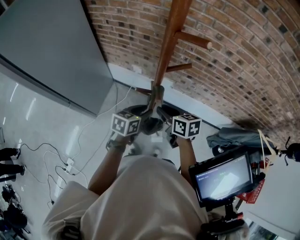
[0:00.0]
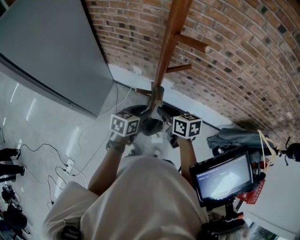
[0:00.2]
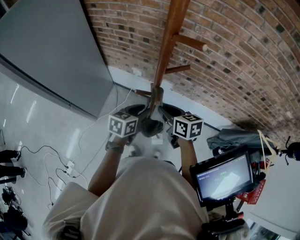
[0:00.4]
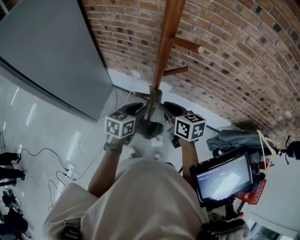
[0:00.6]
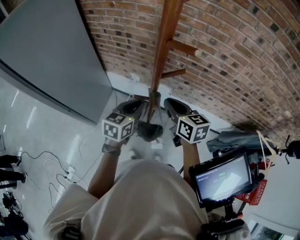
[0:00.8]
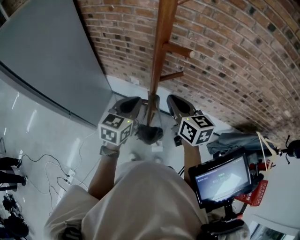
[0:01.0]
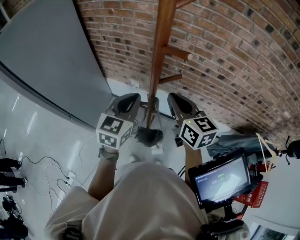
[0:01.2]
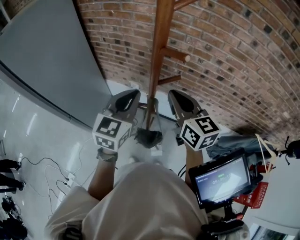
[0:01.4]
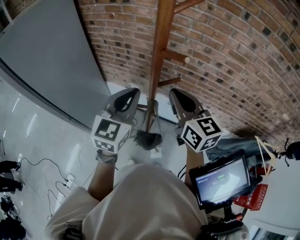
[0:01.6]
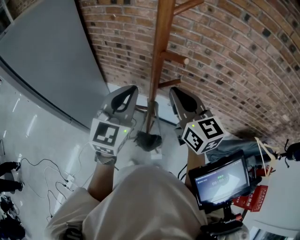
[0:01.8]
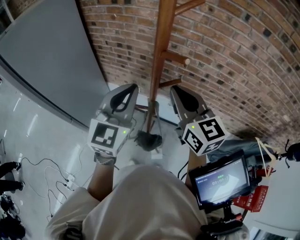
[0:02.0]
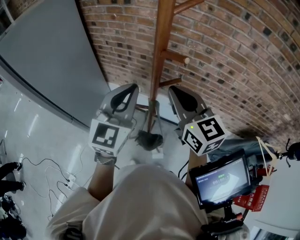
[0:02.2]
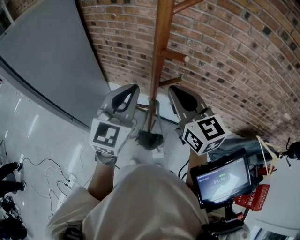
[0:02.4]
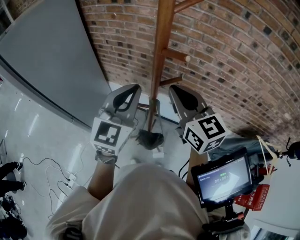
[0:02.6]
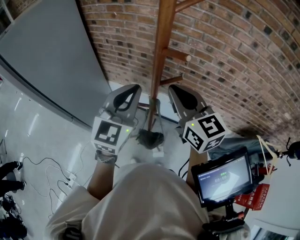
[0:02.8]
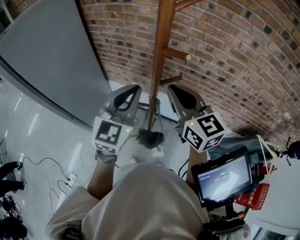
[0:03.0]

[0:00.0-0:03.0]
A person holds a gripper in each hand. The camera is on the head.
0:00.0 to 0:01.6: The grippers both shift upward by about 25 cm. The left gripper turns by about 40 degrees, and closes up, while the right gripper turns by roughly 40 degrees, and closes.
0:01.6 to 0:03.0: The grippers stay close to where they were, moving slightly.

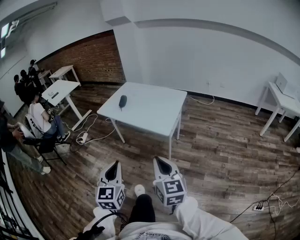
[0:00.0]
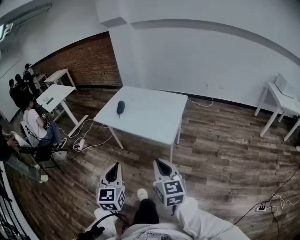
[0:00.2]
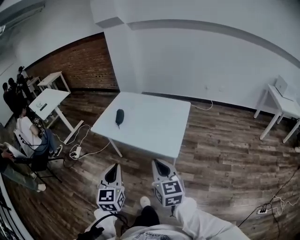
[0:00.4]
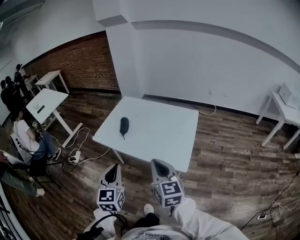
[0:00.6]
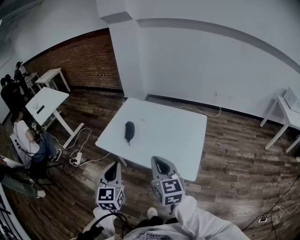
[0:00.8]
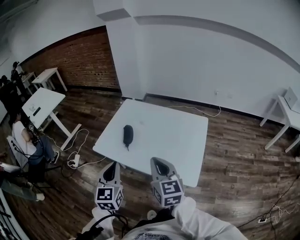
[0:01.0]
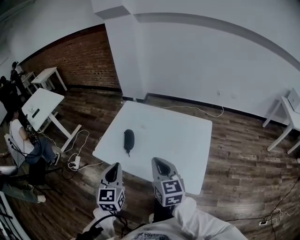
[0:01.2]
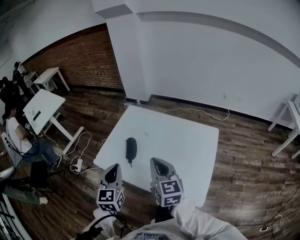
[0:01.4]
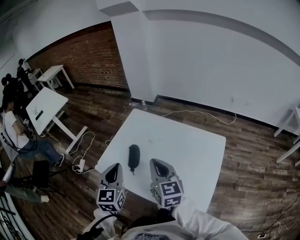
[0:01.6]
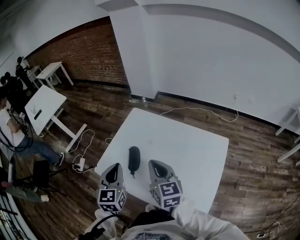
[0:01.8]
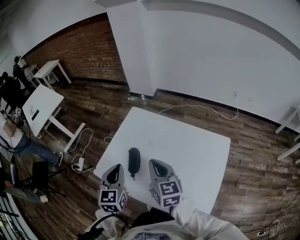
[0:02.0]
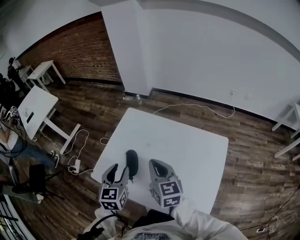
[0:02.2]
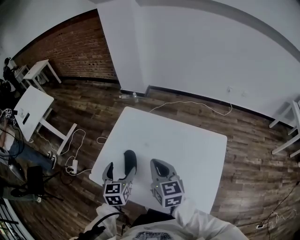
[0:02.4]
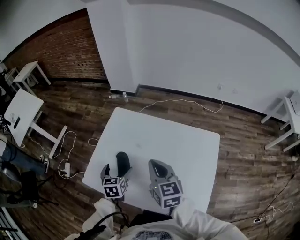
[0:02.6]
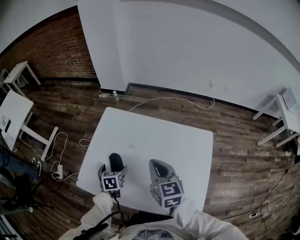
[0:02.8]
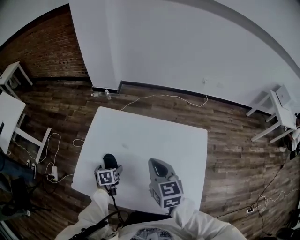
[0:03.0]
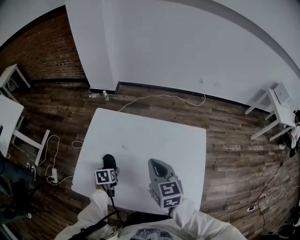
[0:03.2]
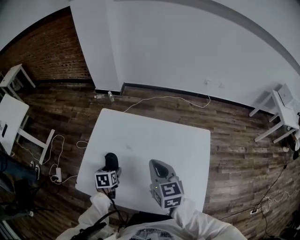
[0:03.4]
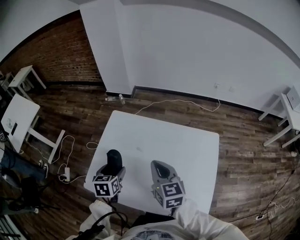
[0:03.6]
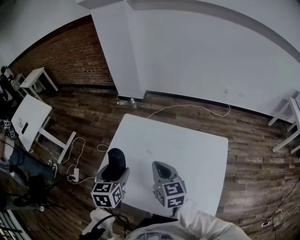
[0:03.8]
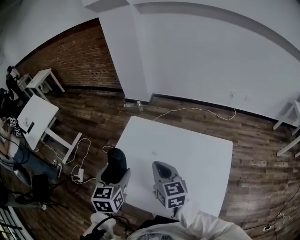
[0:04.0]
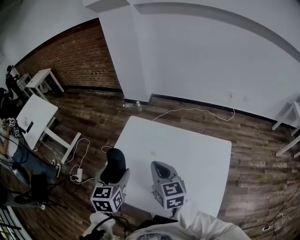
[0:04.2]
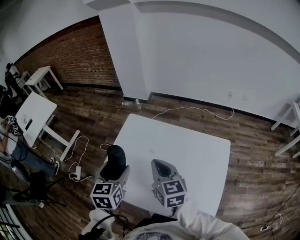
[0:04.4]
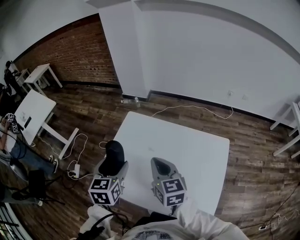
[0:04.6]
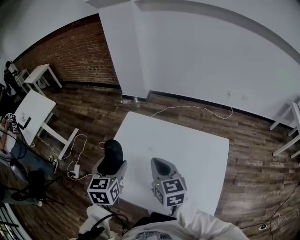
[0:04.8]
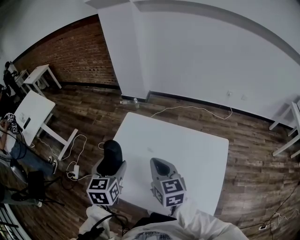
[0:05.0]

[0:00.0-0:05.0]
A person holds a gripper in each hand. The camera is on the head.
0:00.0 to 0:01.6: The two grippers travel together, forward, about 60 cm.
0:01.6 to 0:03.4: The left gripper heads downward and forward, covering approximately 30 cm, angles its fingers downward, by some 40 degrees, and opens up. Meanwhile the right gripper shifts some 10 cm forward, downward and to the right.
0:03.4 to 0:05.0: The right gripper shifts about 5 cm to the left. Meanwhile the left gripper heads upward, covering some 25 cm, and turns by roughly 30 degrees.

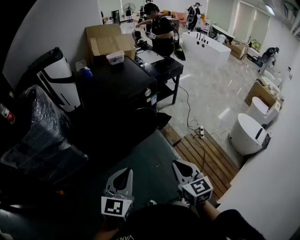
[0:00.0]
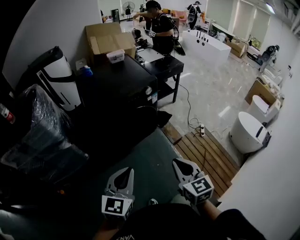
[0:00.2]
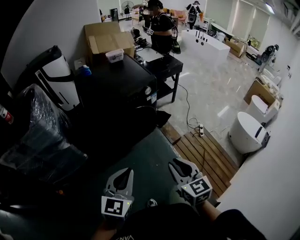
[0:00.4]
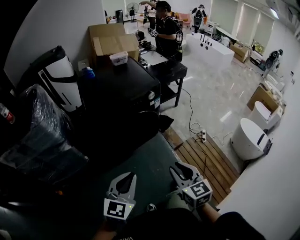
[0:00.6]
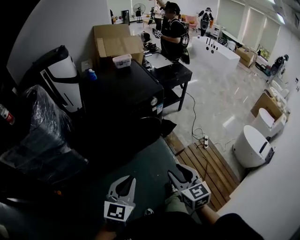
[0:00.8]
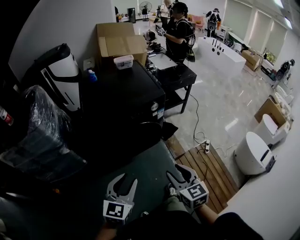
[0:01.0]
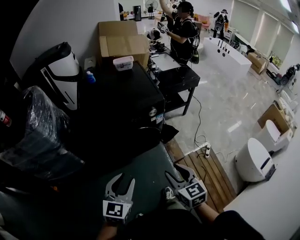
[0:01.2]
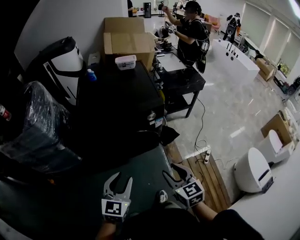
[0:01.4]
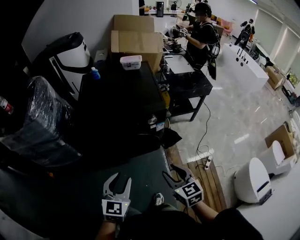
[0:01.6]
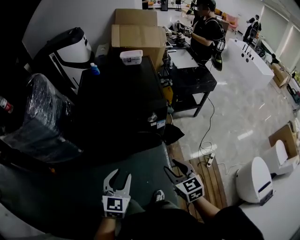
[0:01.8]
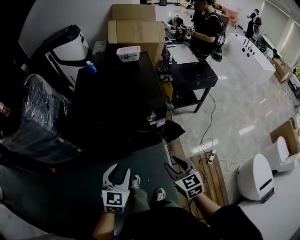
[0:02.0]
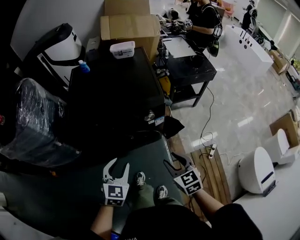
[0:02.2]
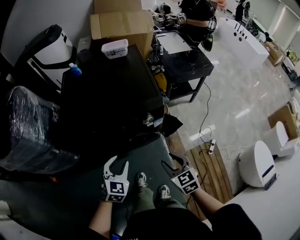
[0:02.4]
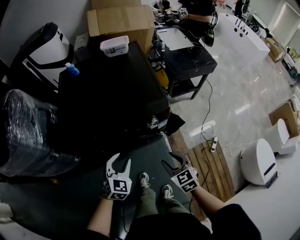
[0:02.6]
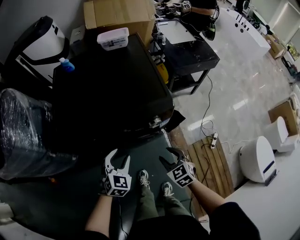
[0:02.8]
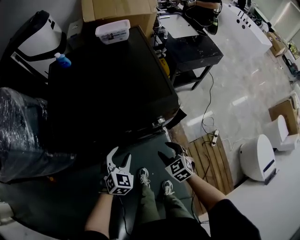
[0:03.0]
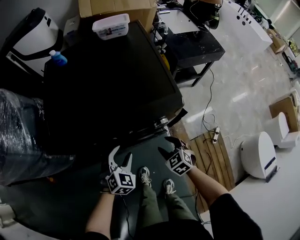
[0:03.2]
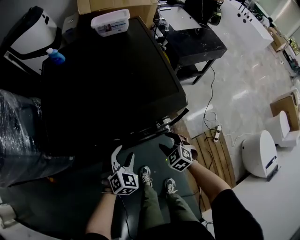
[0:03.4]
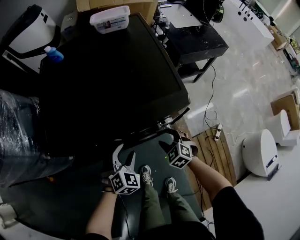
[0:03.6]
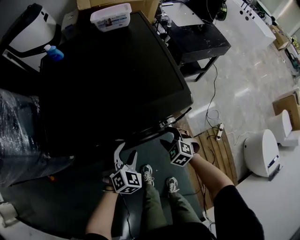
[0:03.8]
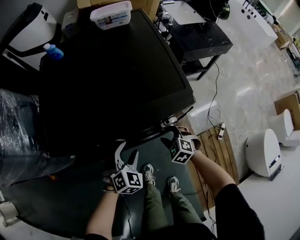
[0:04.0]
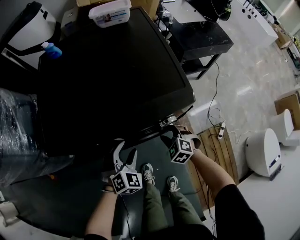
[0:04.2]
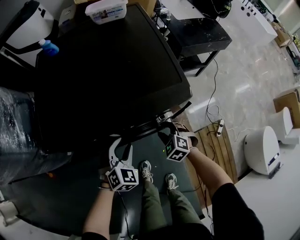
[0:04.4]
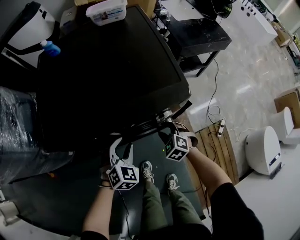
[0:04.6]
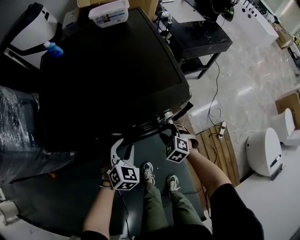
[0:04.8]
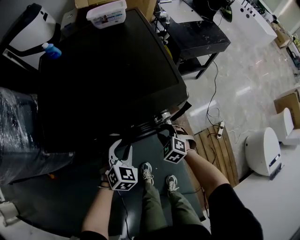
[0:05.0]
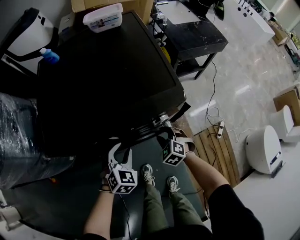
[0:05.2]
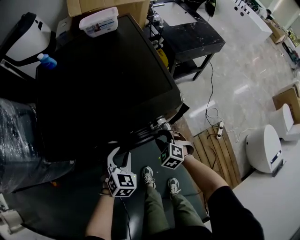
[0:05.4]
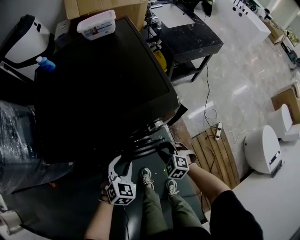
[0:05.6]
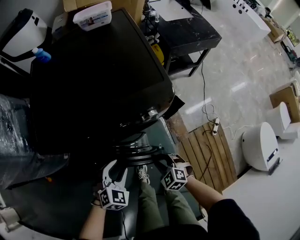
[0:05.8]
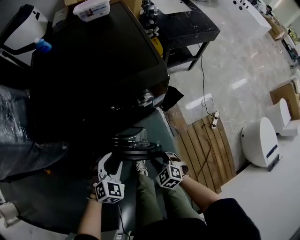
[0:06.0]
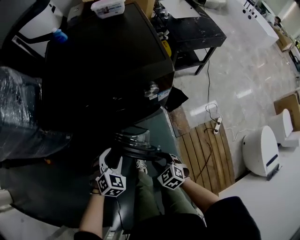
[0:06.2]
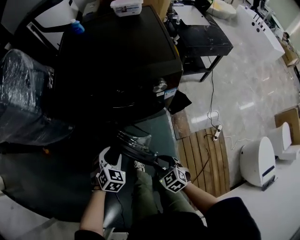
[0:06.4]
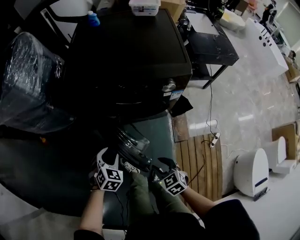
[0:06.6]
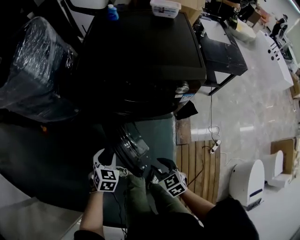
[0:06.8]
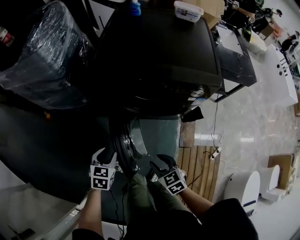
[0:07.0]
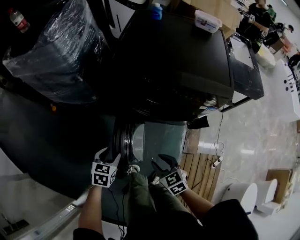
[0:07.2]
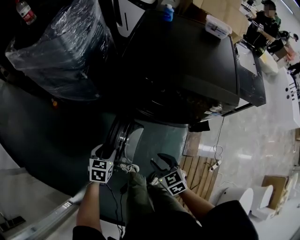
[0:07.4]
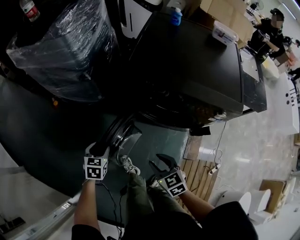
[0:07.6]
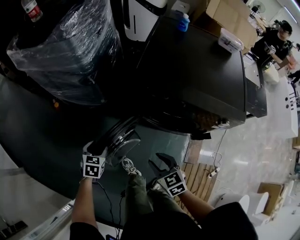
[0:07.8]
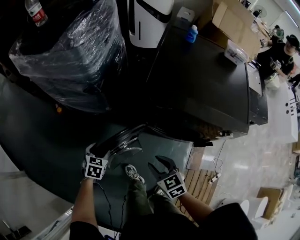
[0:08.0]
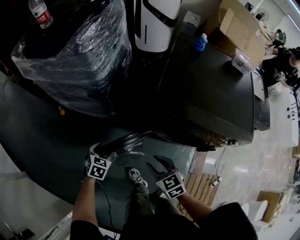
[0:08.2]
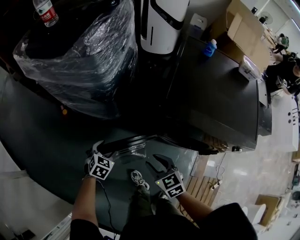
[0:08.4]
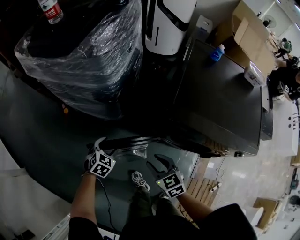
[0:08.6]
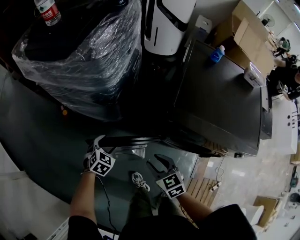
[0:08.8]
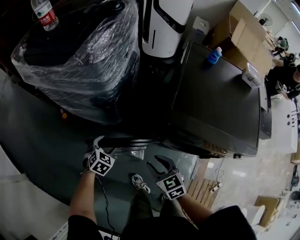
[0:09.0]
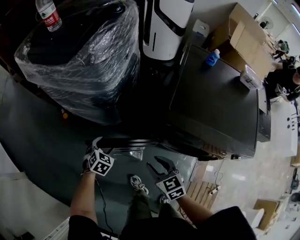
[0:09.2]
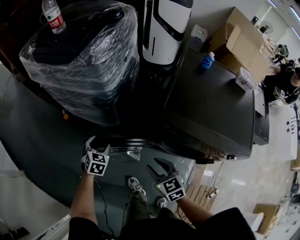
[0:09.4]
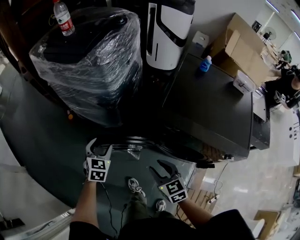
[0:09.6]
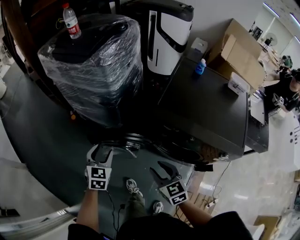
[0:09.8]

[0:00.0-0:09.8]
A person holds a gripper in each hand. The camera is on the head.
0:00.0 to 0:01.4: The right gripper moves forward, some 25 cm, turns by some 20 degrees, and opens. Meanwhile the left gripper heads forward and to the right, covering roughly 20 cm, and opens up.
0:01.4 to 0:02.8: Both grippers travel together forward and downward, approximately 30 cm. The right gripper swivels some 20 degrees, while the left gripper turns by some 30 degrees.
0:02.8 to 0:04.2: The right gripper heads downward and forward, covering some 15 cm, and turns by approximately 30 degrees. Meanwhile the left gripper moves downward, some 10 cm.
0:04.2 to 0:05.6: The right gripper goes roughly 5 cm backward.
0:05.6 to 0:07.0: The right gripper shifts approximately 25 cm backward, to the left and upward, and changes its angle by about 20 degrees. Meanwhile the left gripper travels to the left and backward by some 30 cm, and twists some 50 degrees counterclockwise, seen from behind.
0:07.0 to 0:08.4: Both grippers travel together forward and to the left, about 30 cm. The left gripper opens its fingers.
0:08.4 to 0:09.8: The right gripper shifts approximately 10 cm upward, backward and to the right. The left gripper travels upward by approximately 15 cm, and swivels some 30 degrees.

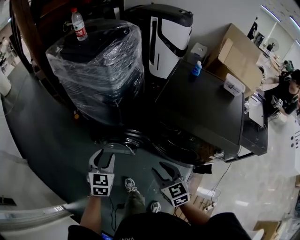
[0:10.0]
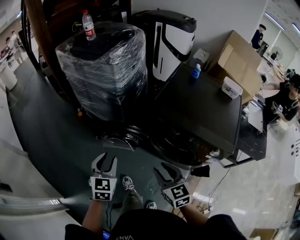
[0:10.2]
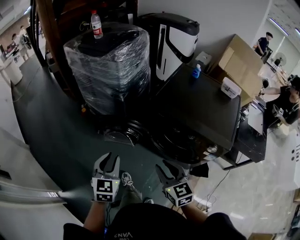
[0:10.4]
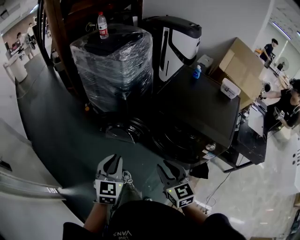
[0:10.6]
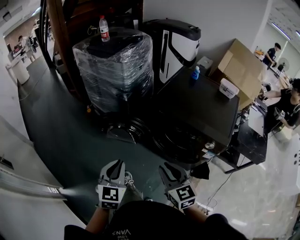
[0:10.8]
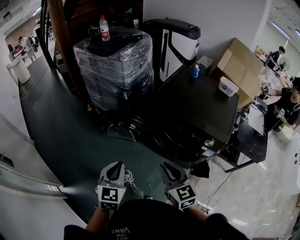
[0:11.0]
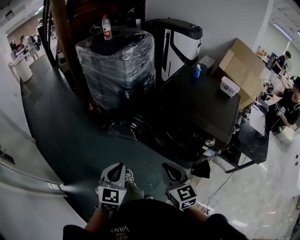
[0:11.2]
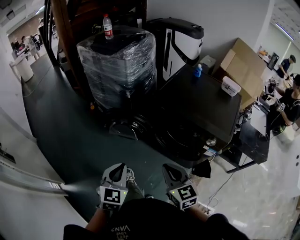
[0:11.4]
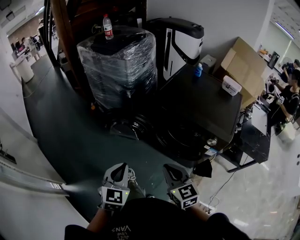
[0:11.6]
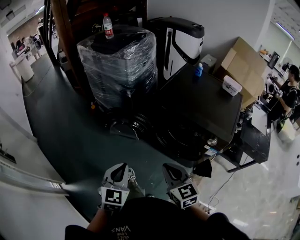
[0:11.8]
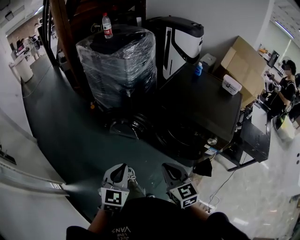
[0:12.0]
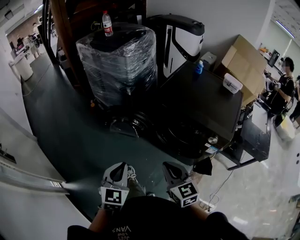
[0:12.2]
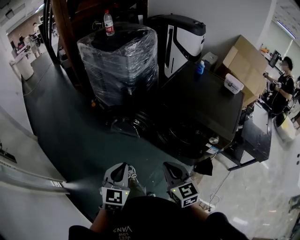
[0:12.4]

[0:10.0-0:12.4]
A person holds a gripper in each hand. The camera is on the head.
0:10.0 to 0:11.2: The right gripper travels backward and upward by about 20 cm, and closes its fingers. The left gripper moves backward, approximately 25 cm, and closes its fingers.
0:11.2 to 0:12.4: The grippers move only a little.

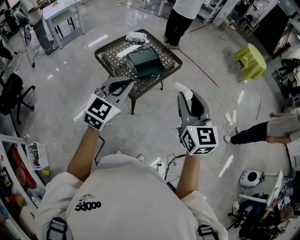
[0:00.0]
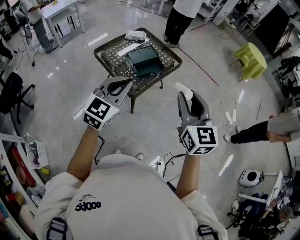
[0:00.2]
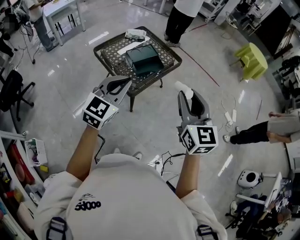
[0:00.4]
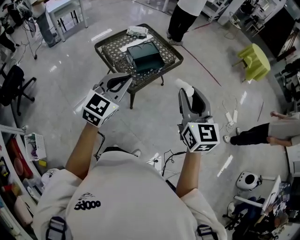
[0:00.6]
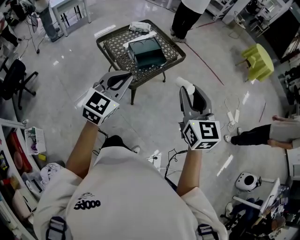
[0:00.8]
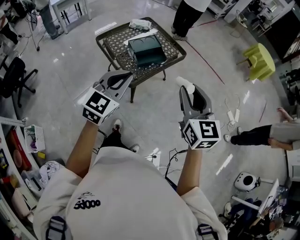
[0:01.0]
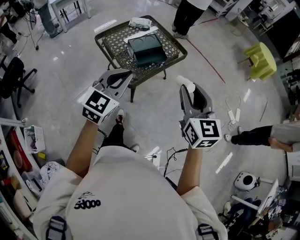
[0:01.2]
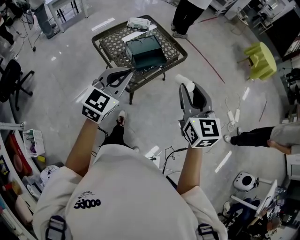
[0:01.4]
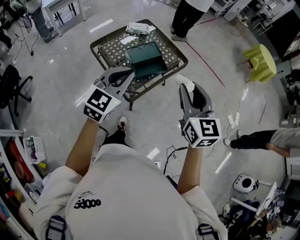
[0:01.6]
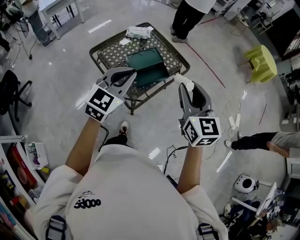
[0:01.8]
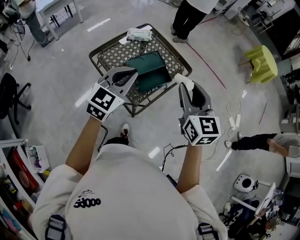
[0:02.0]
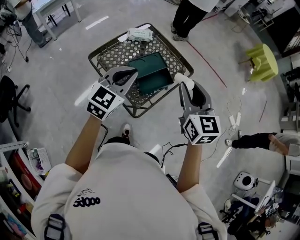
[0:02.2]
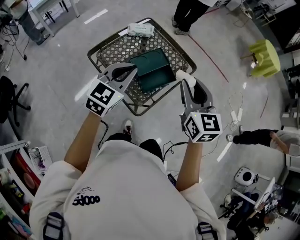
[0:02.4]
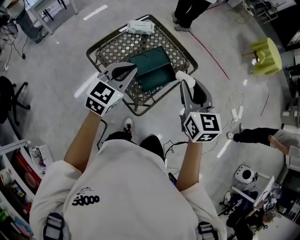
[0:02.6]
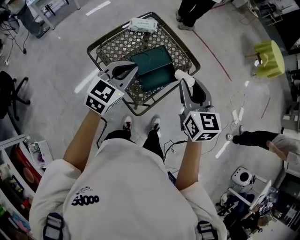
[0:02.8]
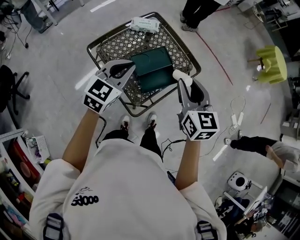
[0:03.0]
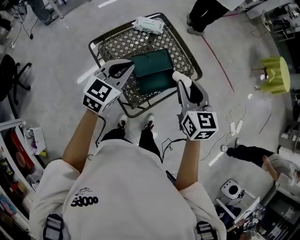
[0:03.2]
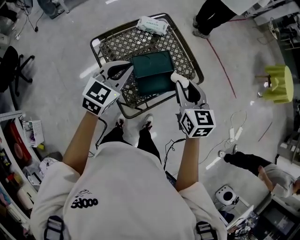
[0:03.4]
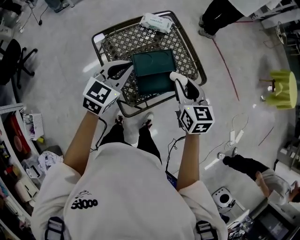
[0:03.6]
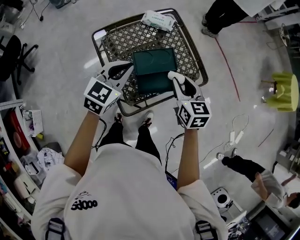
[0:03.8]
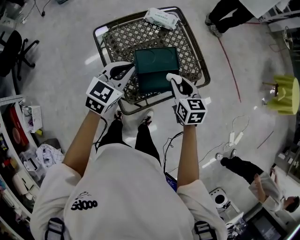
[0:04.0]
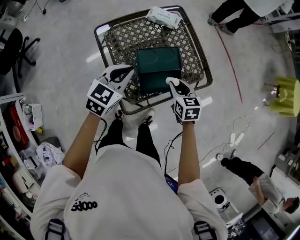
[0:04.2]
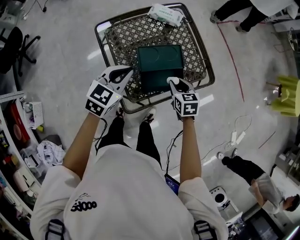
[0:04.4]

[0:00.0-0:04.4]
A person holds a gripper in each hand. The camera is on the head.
0:00.0 to 0:01.4: Both grippers travel together forward, approximately 10 cm.
0:01.4 to 0:03.0: The grippers both shift forward and to the left by roughly 30 cm.
0:03.0 to 0:04.4: The right gripper shifts approximately 30 cm downward, and changes its angle by roughly 30 degrees, while the left gripper goes approximately 10 cm downward.
